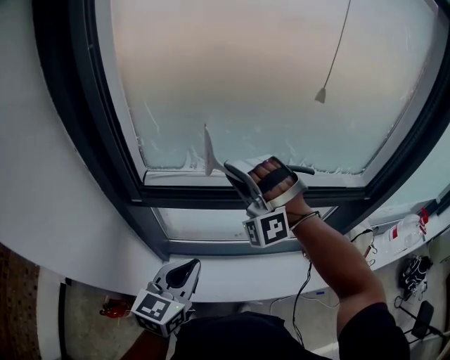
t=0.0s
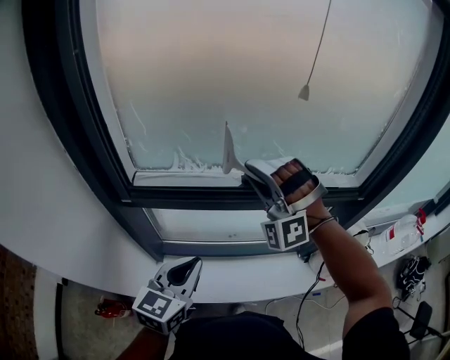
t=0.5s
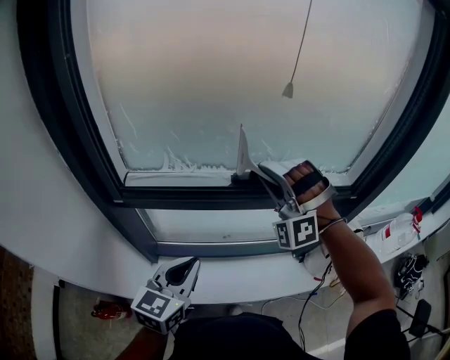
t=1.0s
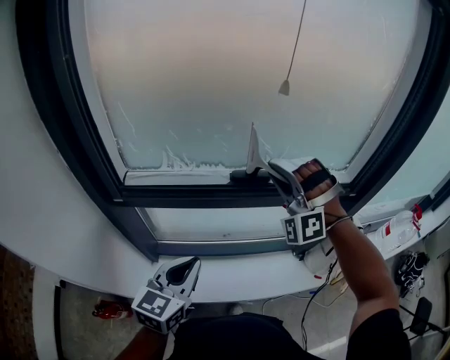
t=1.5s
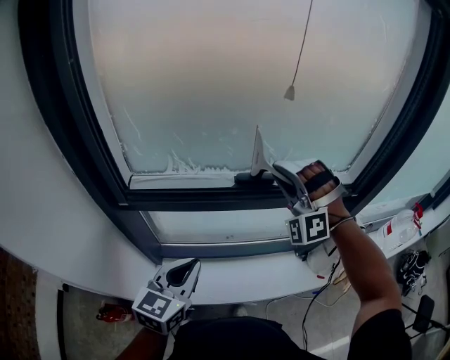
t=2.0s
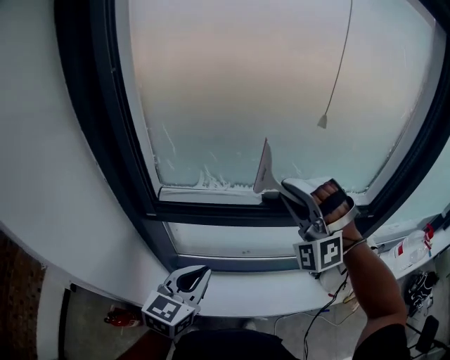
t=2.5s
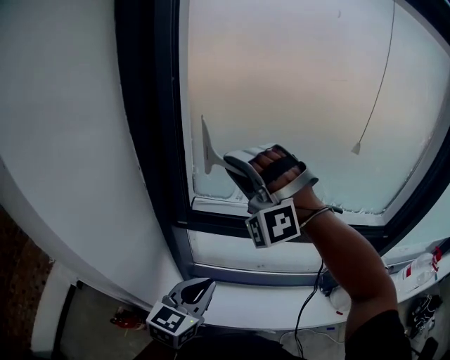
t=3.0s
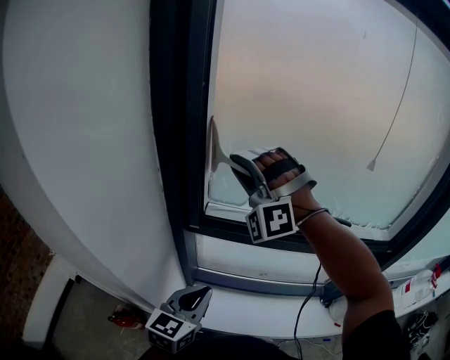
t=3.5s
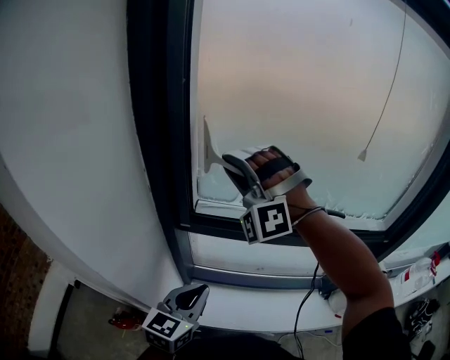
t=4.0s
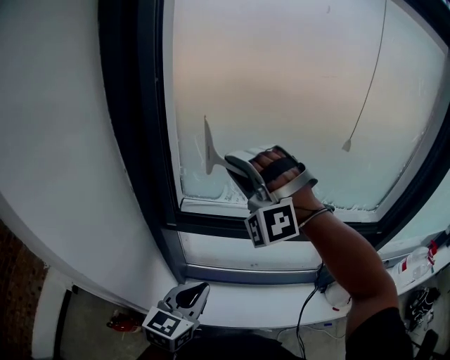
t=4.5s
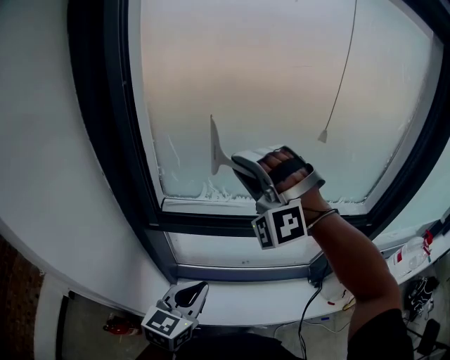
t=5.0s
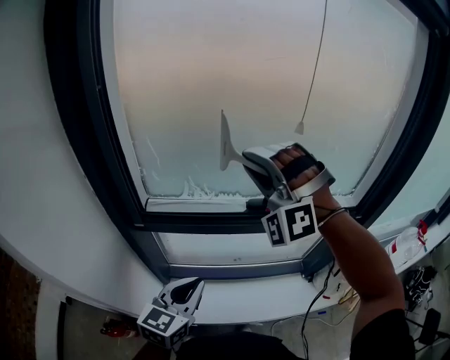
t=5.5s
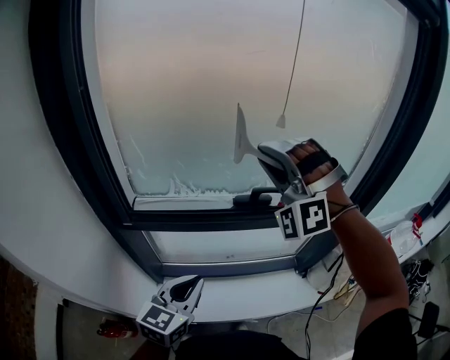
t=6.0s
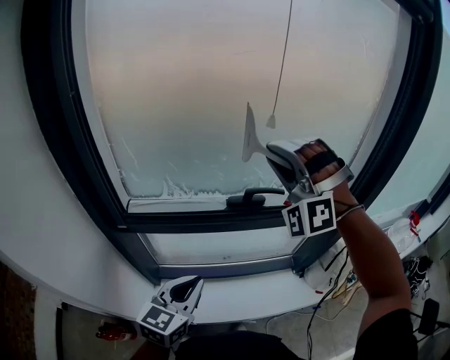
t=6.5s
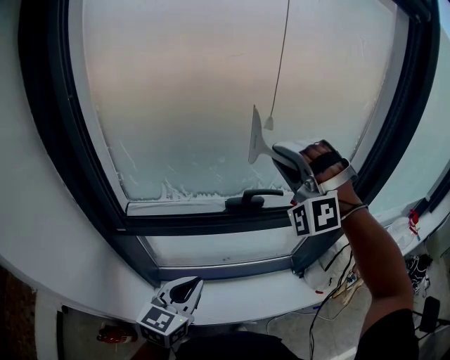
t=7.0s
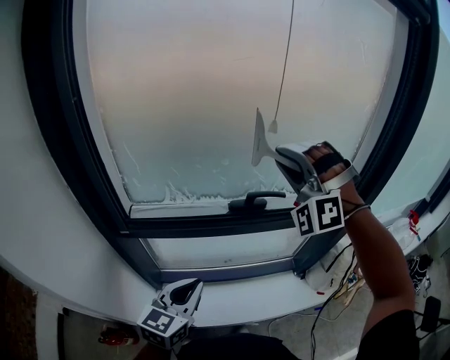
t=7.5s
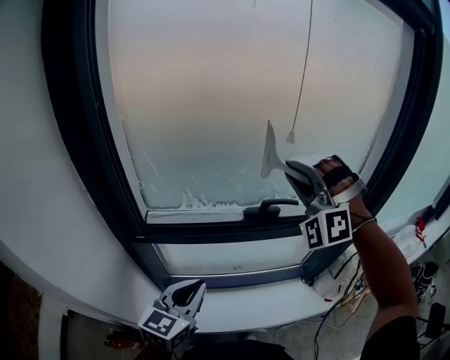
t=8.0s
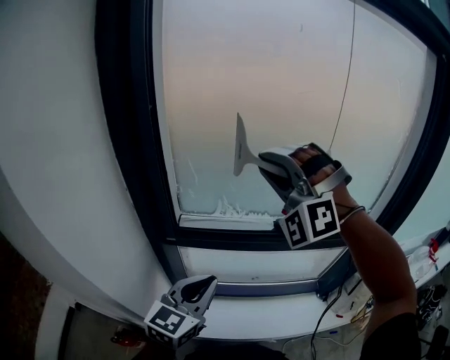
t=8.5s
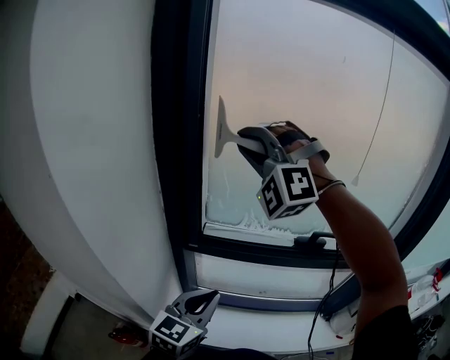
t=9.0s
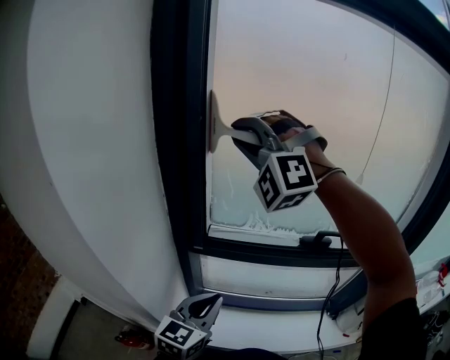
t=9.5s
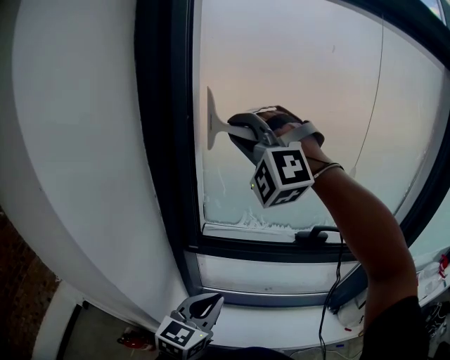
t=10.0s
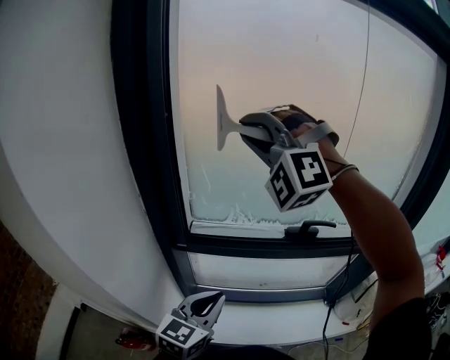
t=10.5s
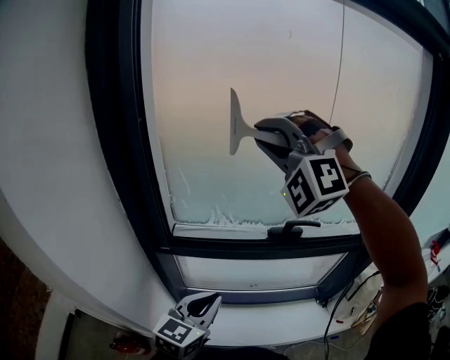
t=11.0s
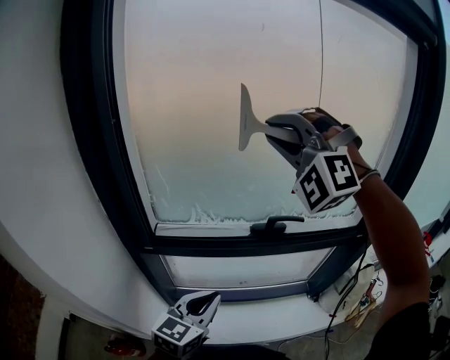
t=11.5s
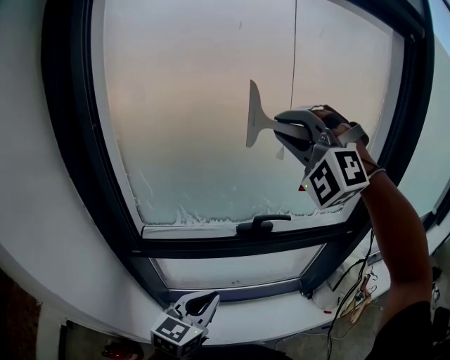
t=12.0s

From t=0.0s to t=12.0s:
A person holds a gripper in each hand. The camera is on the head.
From t=2.0s to t=4.0s: The left gripper moves some 15 cm.
From t=4.0s to t=6.0s: The left gripper ends up about 15 cm from where it was.
From t=8.0s to t=10.0s: The left gripper ends up roughly 10 cm from where it was.
From t=10.0s to t=12.0s: The left gripper moves about 15 cm.

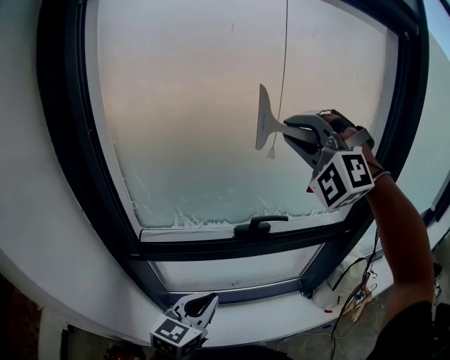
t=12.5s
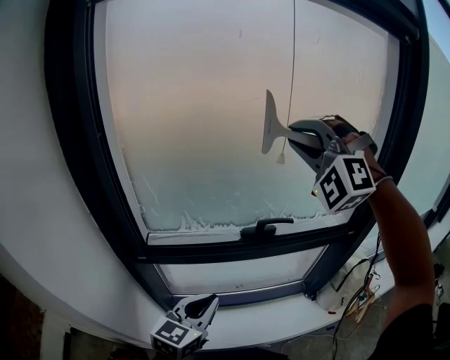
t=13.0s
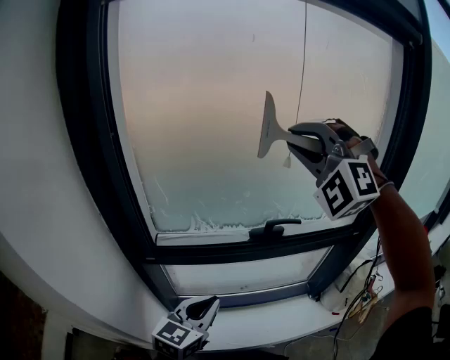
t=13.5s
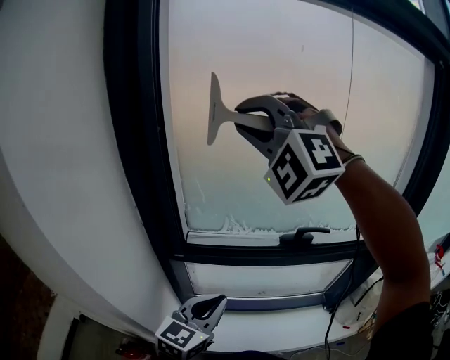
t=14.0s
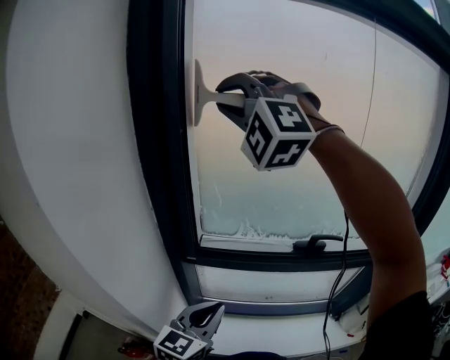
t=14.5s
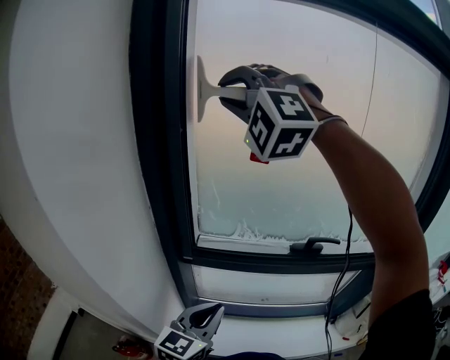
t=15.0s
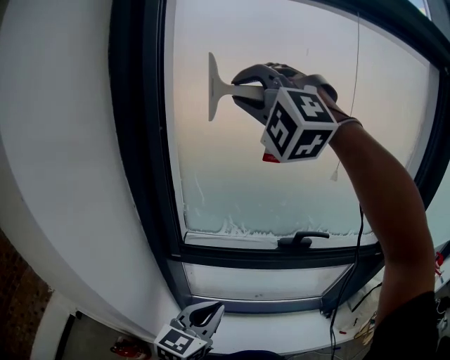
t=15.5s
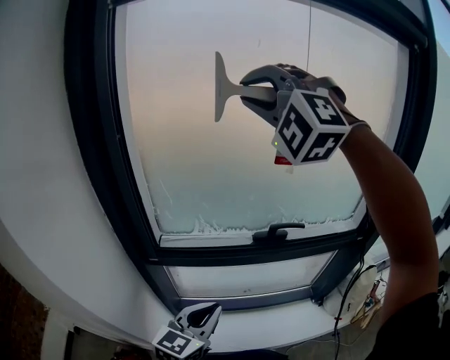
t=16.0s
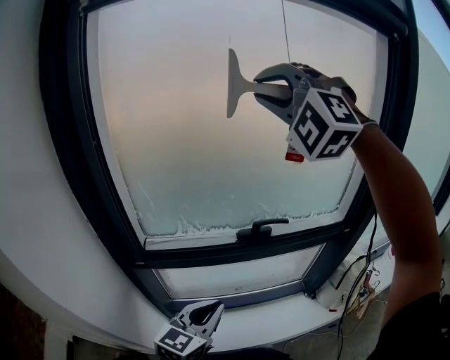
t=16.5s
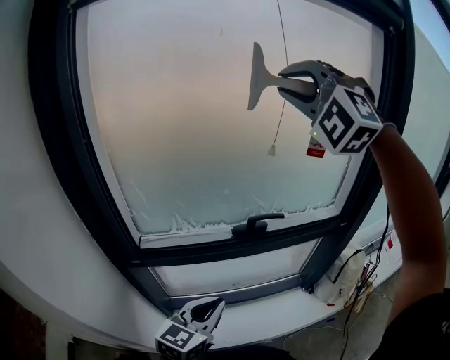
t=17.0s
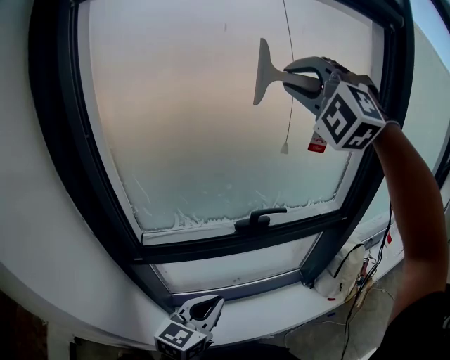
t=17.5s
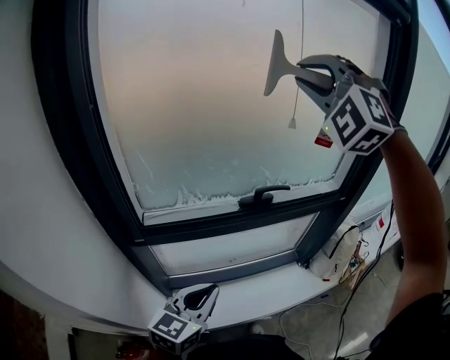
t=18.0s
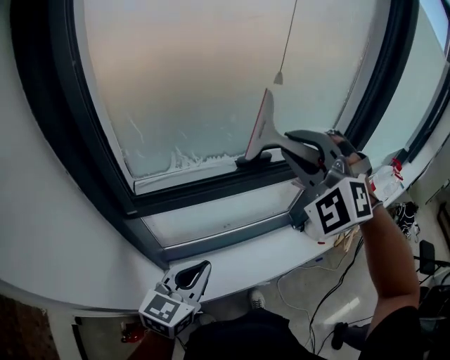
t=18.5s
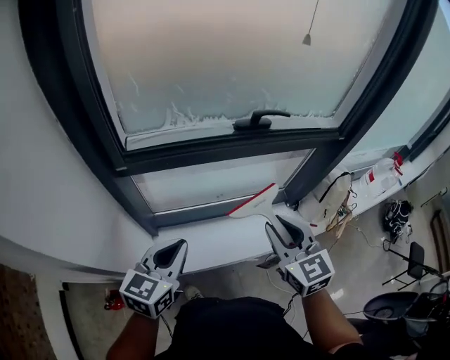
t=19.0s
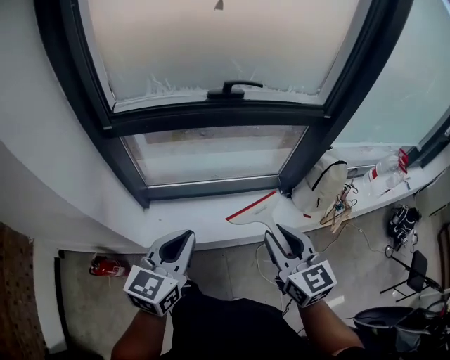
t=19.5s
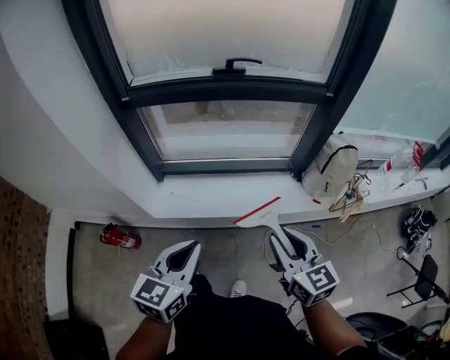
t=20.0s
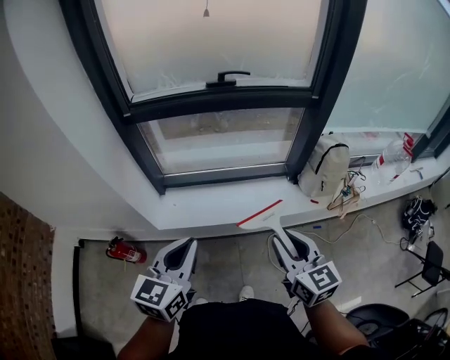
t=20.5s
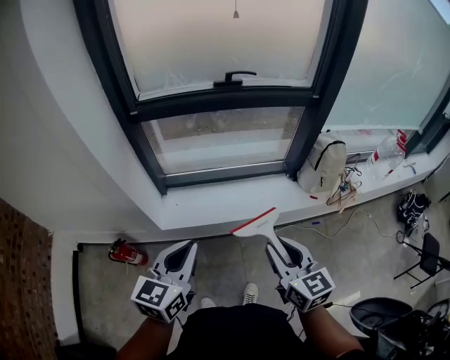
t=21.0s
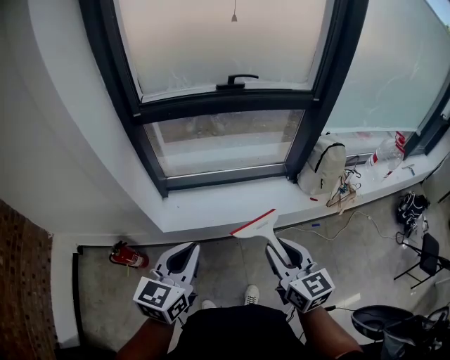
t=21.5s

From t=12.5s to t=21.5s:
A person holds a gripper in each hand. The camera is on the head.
From t=12.5s to t=14.5s: The left gripper shifts by roughly 15 cm.
From t=14.5s to t=17.0s: The left gripper shifts by approximately 15 cm.
From t=17.0s to t=19.5s: The left gripper shifts by about 20 cm.
From t=19.5s to t=21.5s: The left gripper ends up some 20 cm from where it was.

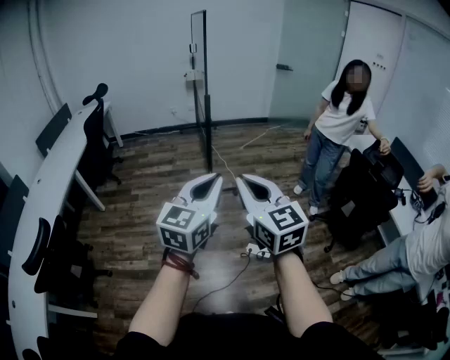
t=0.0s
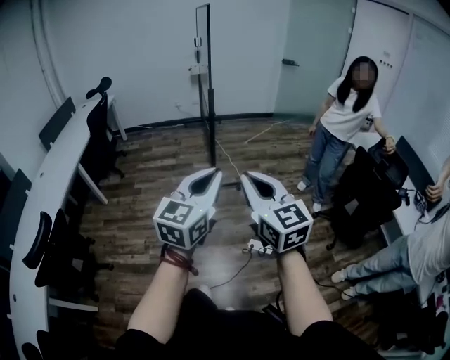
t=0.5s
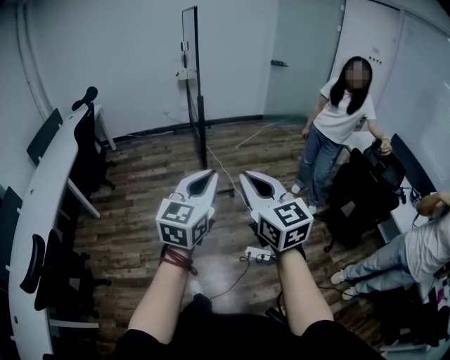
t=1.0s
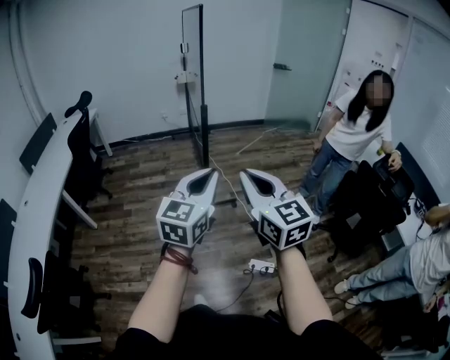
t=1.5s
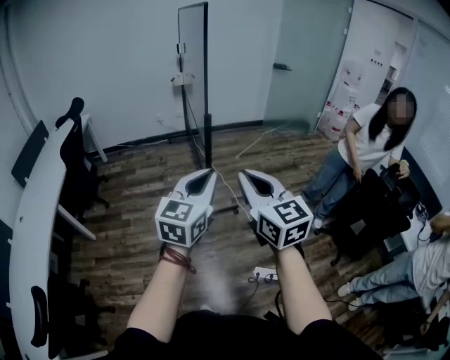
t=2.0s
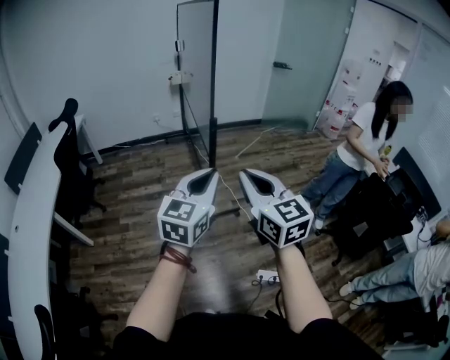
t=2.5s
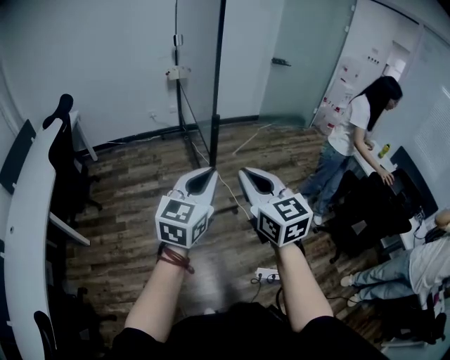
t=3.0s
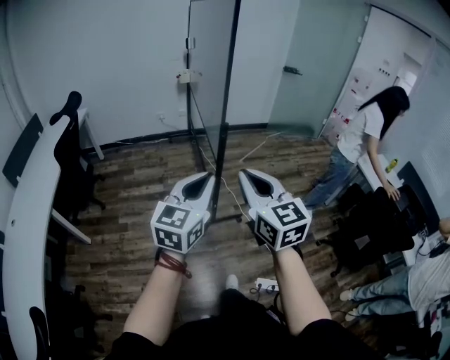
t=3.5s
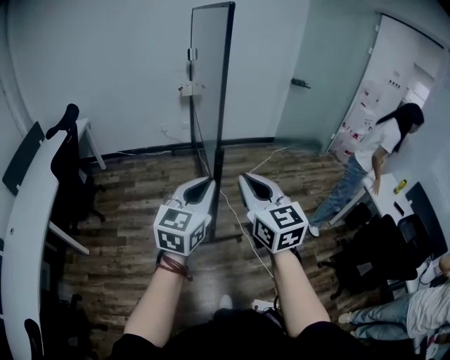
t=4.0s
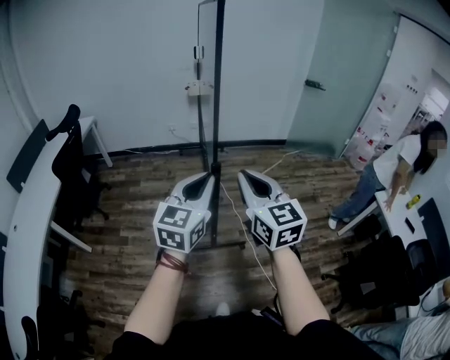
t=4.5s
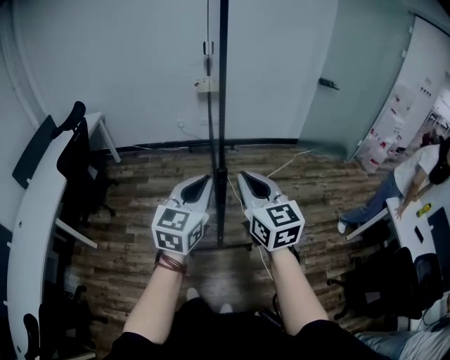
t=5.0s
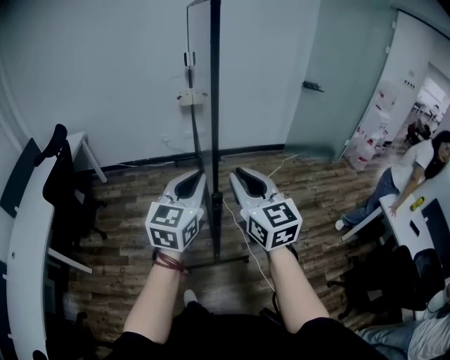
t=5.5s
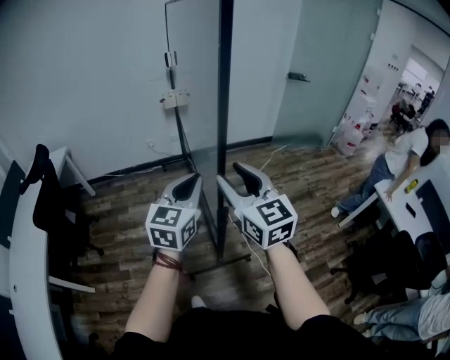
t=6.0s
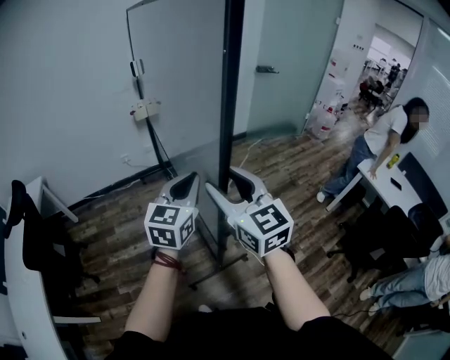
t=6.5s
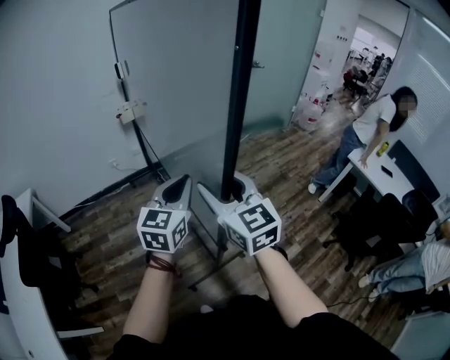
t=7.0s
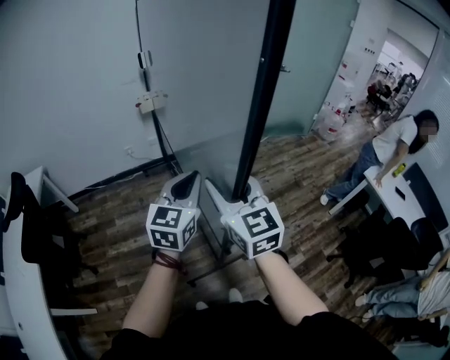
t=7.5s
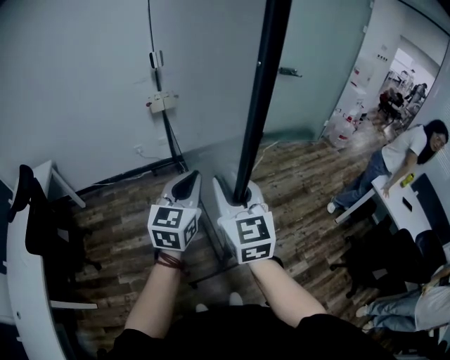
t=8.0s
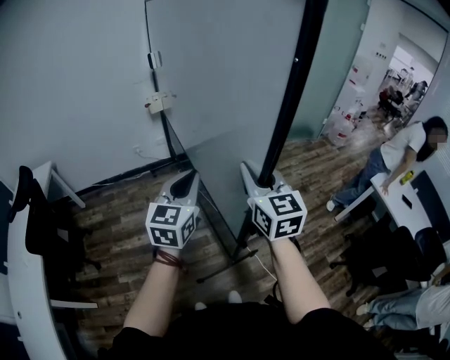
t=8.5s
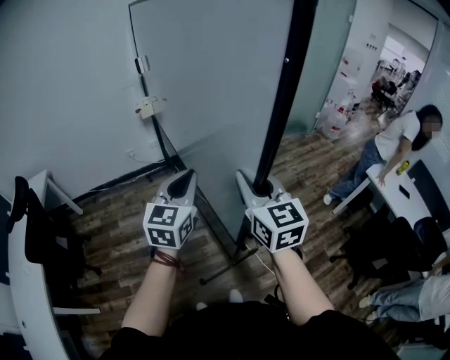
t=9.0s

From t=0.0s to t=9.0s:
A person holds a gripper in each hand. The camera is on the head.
From t=0.0s to t=2.0s: Both grippers move forward, roughly 30 cm.
From t=2.0s to t=4.5s: The two grippers go roughly 35 cm forward.
From t=4.5s to t=7.0s: The right gripper heads forward and to the left, covering some 30 cm, and opens its fingers, while the left gripper travels forward by some 30 cm, and turns by roughly 20 degrees.
From t=7.0s to t=9.0s: The right gripper travels to the right by some 10 cm, and closes up.
